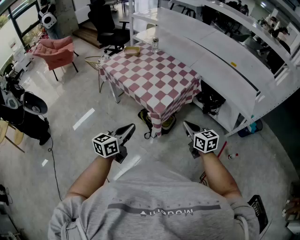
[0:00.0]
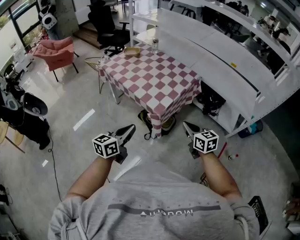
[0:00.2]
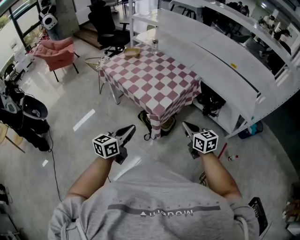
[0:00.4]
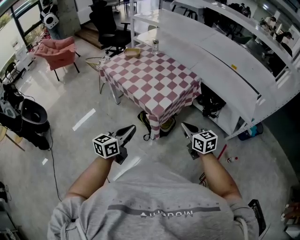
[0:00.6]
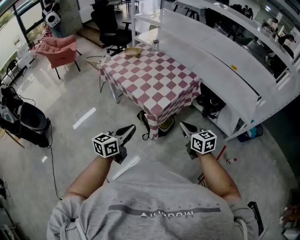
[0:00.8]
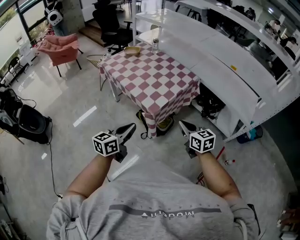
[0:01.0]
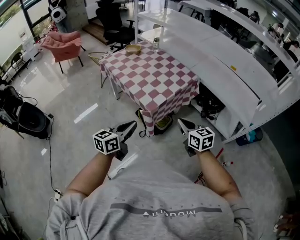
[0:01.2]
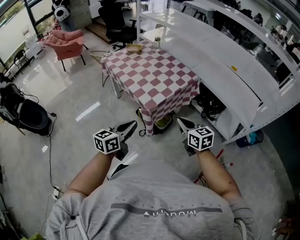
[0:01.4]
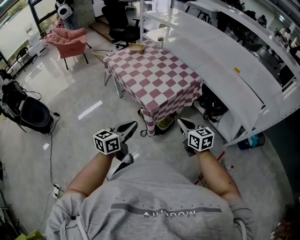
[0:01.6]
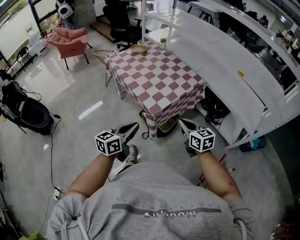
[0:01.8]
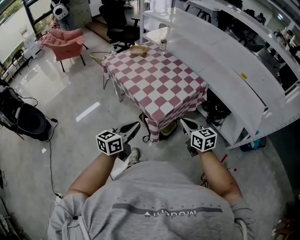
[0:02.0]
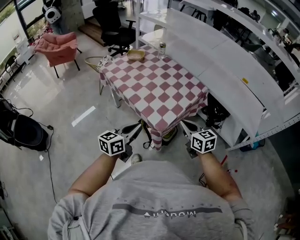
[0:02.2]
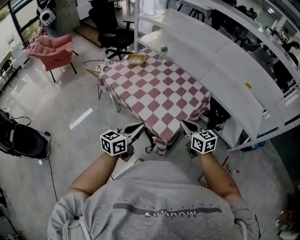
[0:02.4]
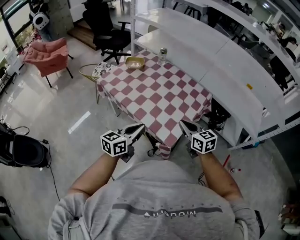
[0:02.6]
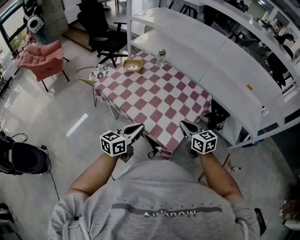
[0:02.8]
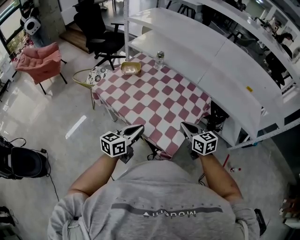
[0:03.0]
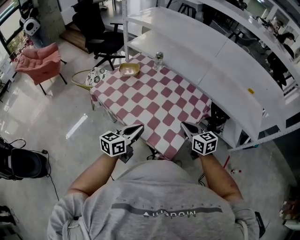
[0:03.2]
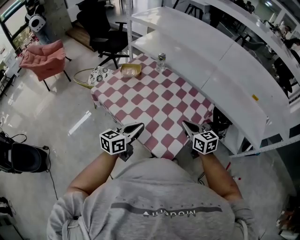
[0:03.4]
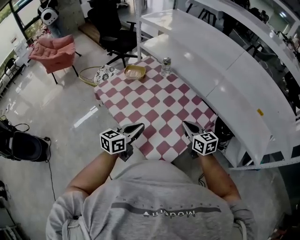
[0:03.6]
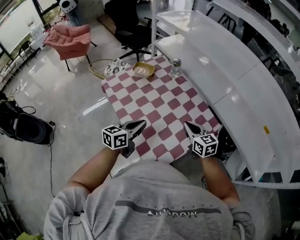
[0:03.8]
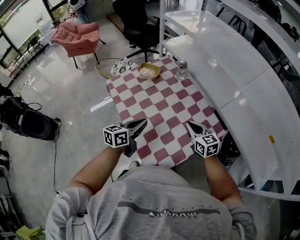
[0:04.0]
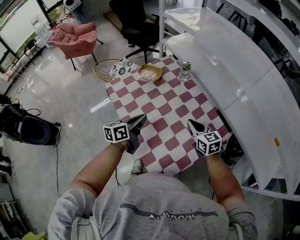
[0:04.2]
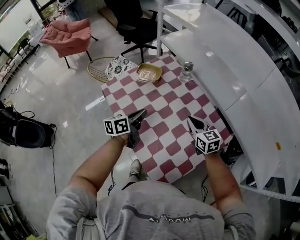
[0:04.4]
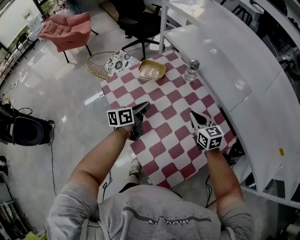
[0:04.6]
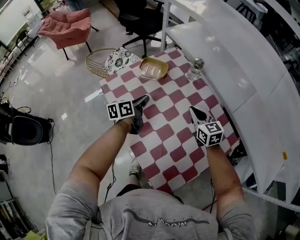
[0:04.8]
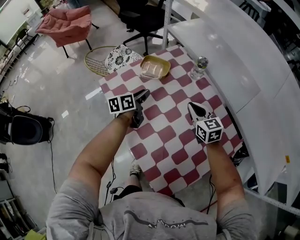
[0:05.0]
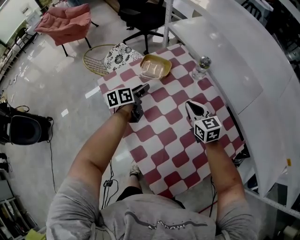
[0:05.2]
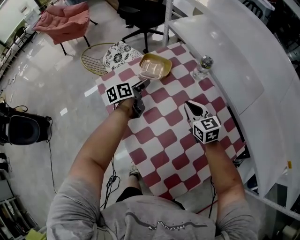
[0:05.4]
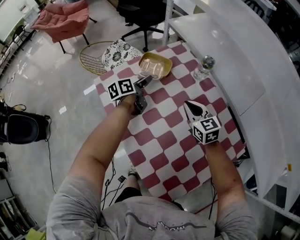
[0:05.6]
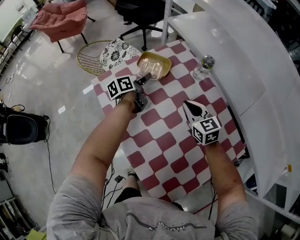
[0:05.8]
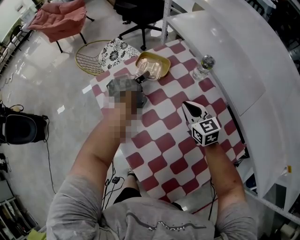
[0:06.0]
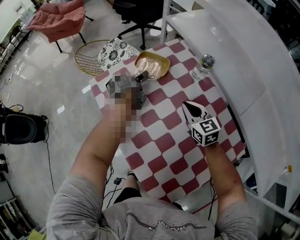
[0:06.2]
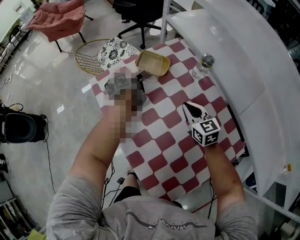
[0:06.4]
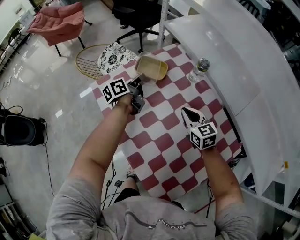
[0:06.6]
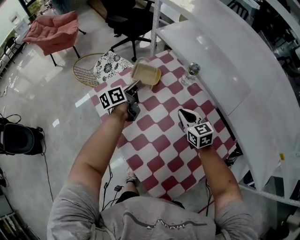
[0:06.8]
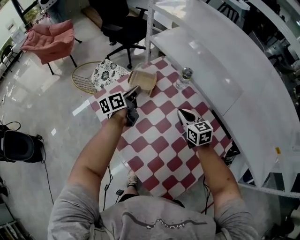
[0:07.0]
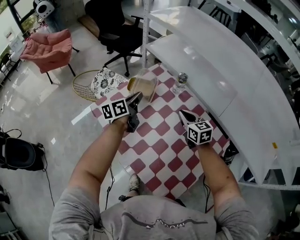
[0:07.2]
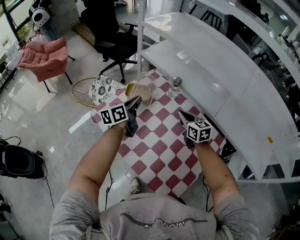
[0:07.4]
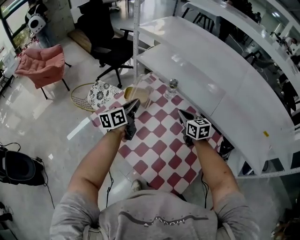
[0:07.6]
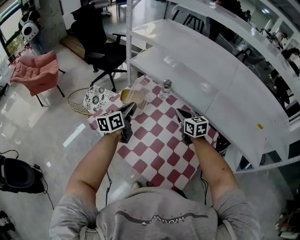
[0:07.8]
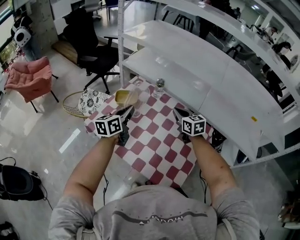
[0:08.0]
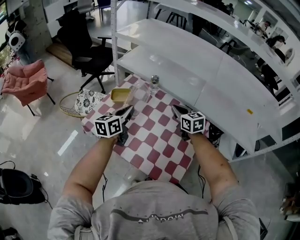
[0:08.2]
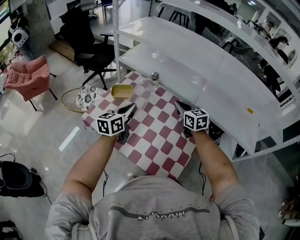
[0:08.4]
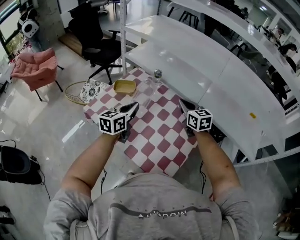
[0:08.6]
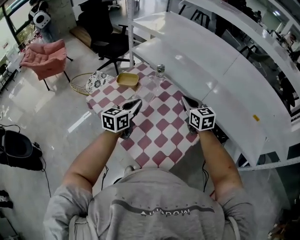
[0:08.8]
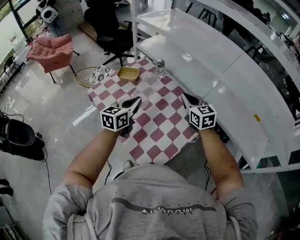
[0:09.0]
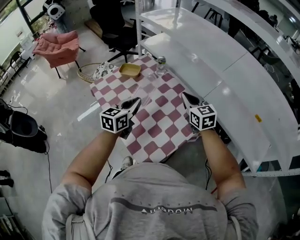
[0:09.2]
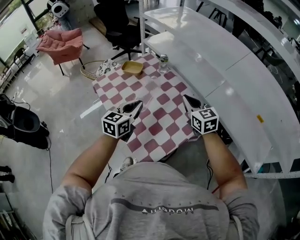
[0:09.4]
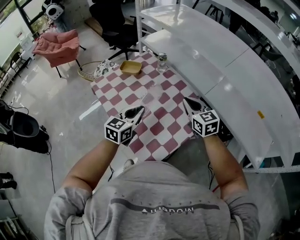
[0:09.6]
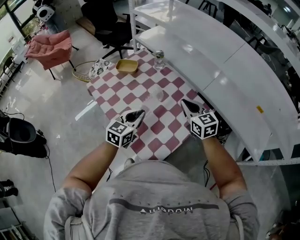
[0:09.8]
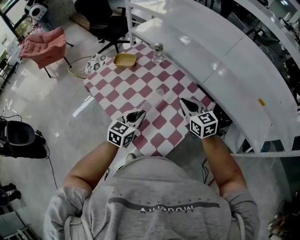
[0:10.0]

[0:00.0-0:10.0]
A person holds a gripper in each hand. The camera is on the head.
0:00.0 to 0:01.4: The right gripper goes some 5 cm to the right, while the left gripper heads to the right, covering roughly 10 cm.
0:01.4 to 0:02.8: Both grippers travel together forward and to the left, about 35 cm.
0:02.8 to 0:04.2: Both grippers travel together forward, roughly 25 cm. The left gripper changes its angle by roughly 30 degrees.
0:04.2 to 0:05.8: The left gripper goes approximately 35 cm forward and downward, rotates roughly 20 degrees, and opens; the right gripper shifts about 20 cm forward, to the left and downward.
0:05.8 to 0:07.2: The left gripper moves upward and backward, about 15 cm, changes its angle by approximately 20 degrees, and closes up; the right gripper moves upward, approximately 10 cm.
0:07.2 to 0:08.6: The left gripper travels backward, to the right and upward by approximately 20 cm, and turns by about 30 degrees. Meanwhile the right gripper heads upward, to the right and backward, covering approximately 15 cm.
0:08.6 to 0:10.0: The right gripper goes some 10 cm backward, while the left gripper moves backward, to the right and downward, some 20 cm.

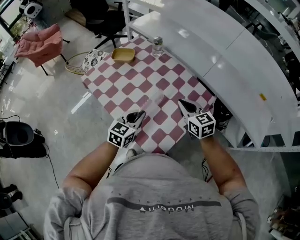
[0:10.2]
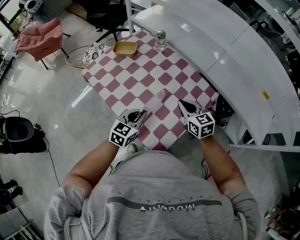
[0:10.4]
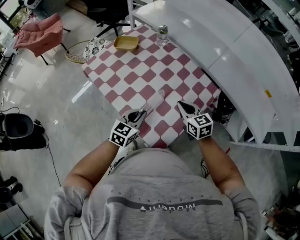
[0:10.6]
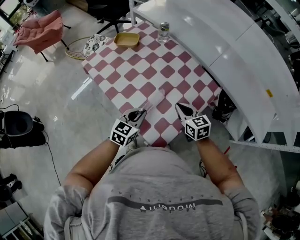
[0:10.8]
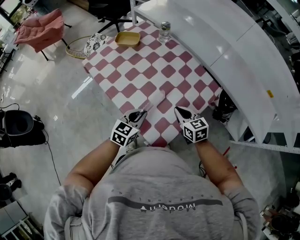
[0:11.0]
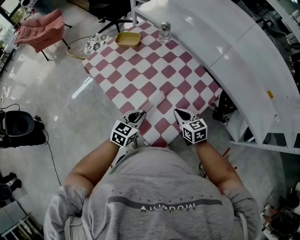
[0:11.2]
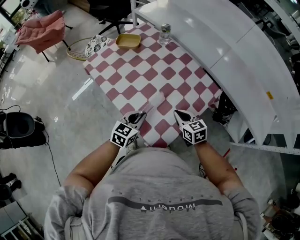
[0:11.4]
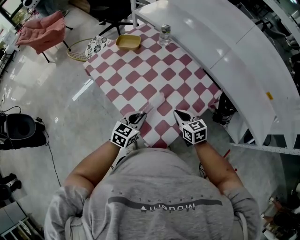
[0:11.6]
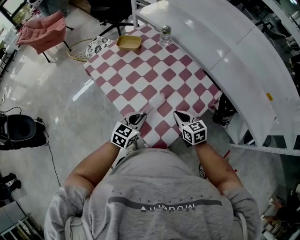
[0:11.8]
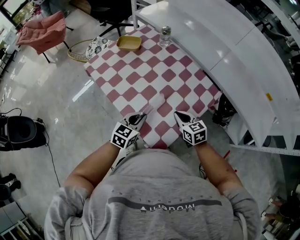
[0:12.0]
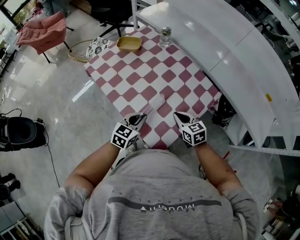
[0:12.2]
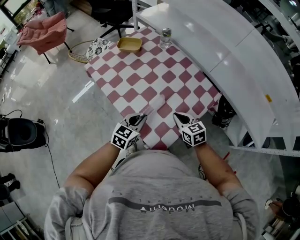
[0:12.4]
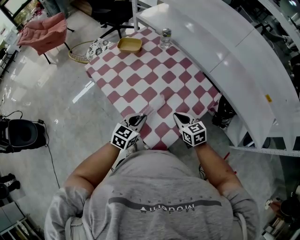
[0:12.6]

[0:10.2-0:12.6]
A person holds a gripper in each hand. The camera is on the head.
0:10.2 to 0:11.4: The right gripper shifts approximately 15 cm downward and backward, while the left gripper travels downward by about 5 cm.
0:11.4 to 0:12.6: Both grippers stay about where they are.

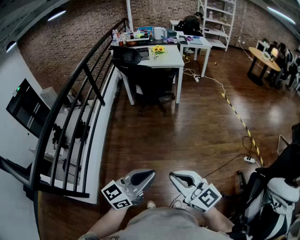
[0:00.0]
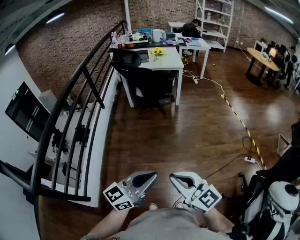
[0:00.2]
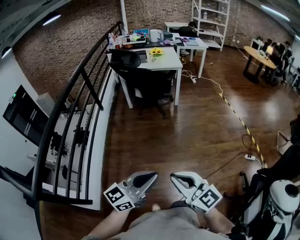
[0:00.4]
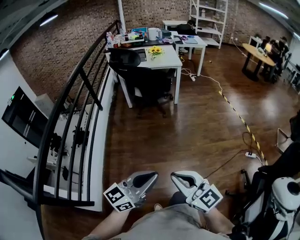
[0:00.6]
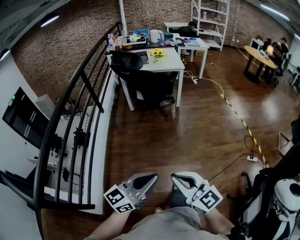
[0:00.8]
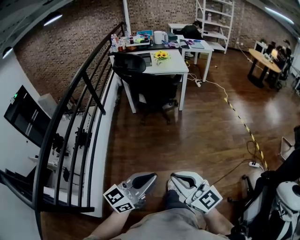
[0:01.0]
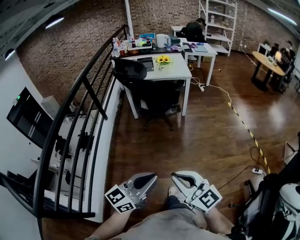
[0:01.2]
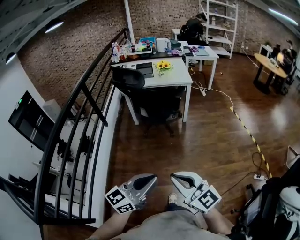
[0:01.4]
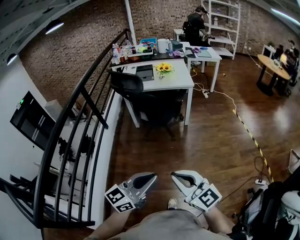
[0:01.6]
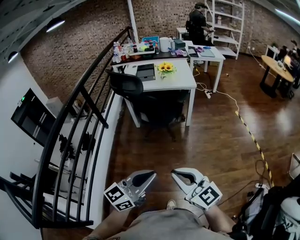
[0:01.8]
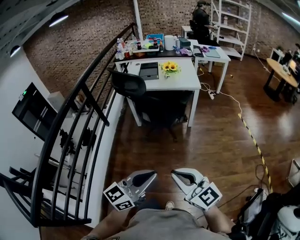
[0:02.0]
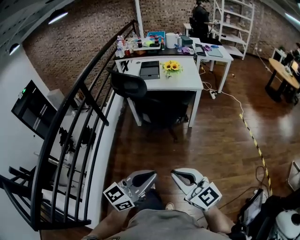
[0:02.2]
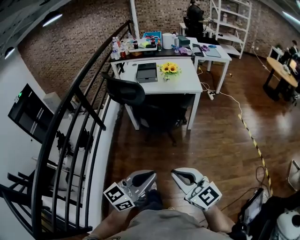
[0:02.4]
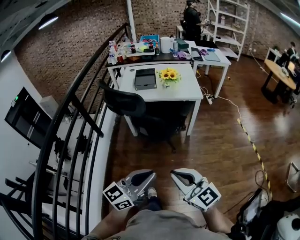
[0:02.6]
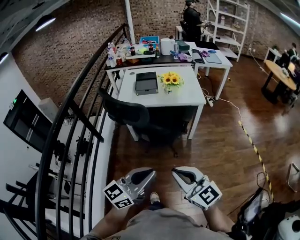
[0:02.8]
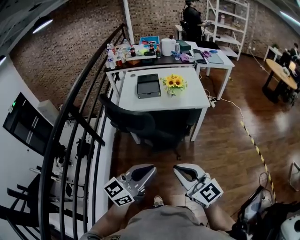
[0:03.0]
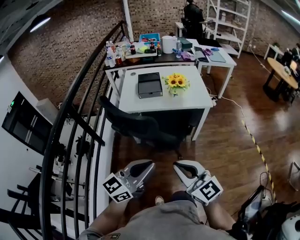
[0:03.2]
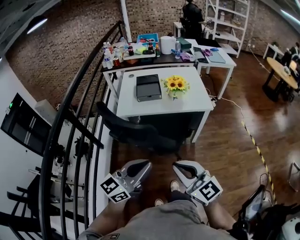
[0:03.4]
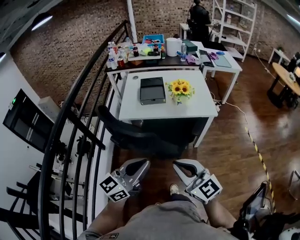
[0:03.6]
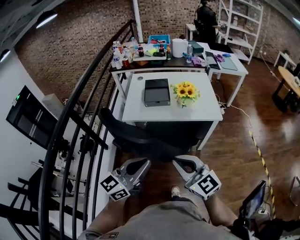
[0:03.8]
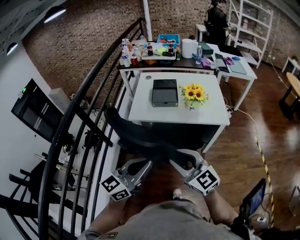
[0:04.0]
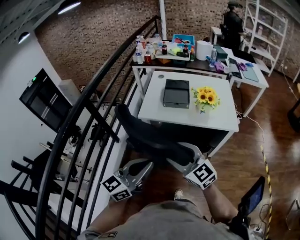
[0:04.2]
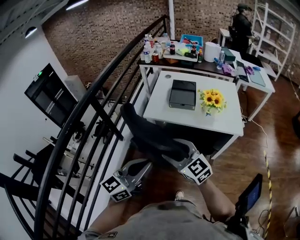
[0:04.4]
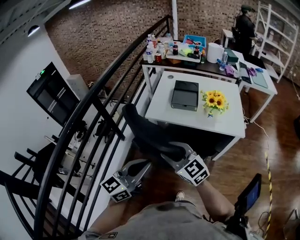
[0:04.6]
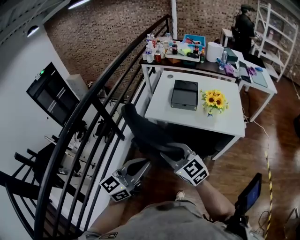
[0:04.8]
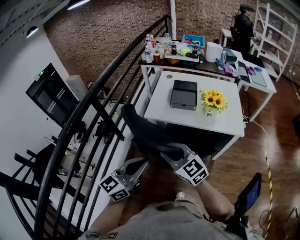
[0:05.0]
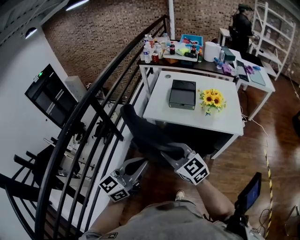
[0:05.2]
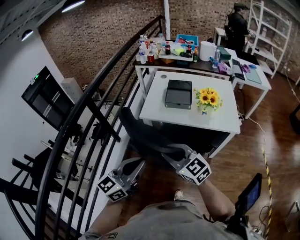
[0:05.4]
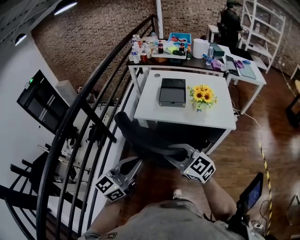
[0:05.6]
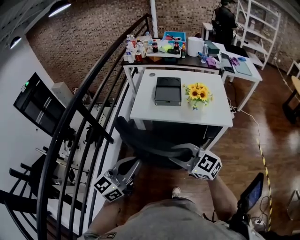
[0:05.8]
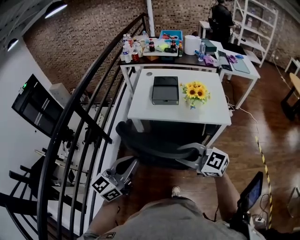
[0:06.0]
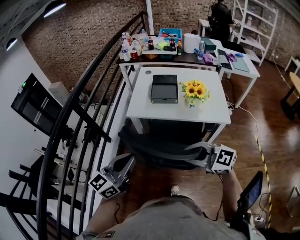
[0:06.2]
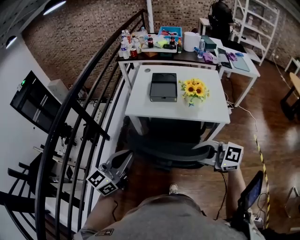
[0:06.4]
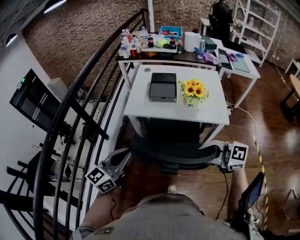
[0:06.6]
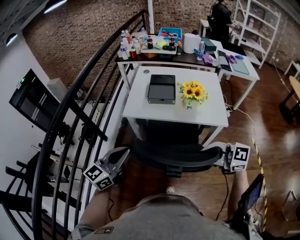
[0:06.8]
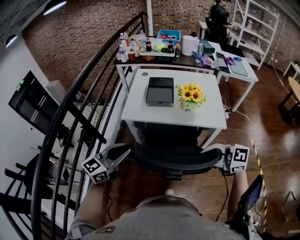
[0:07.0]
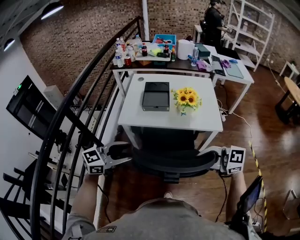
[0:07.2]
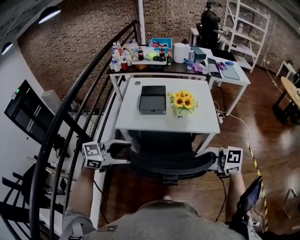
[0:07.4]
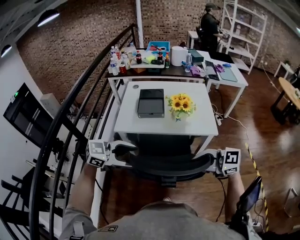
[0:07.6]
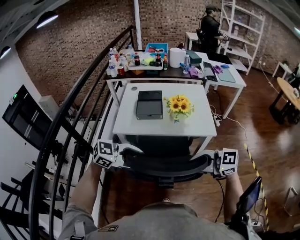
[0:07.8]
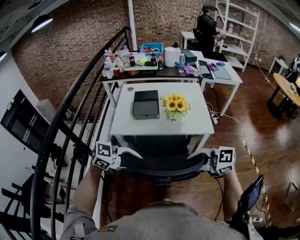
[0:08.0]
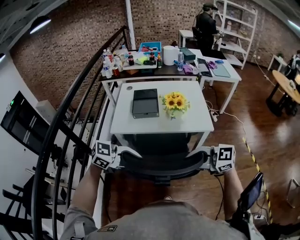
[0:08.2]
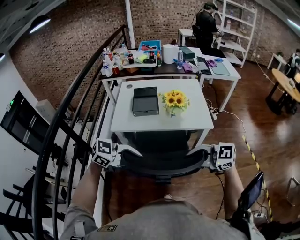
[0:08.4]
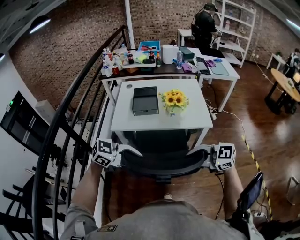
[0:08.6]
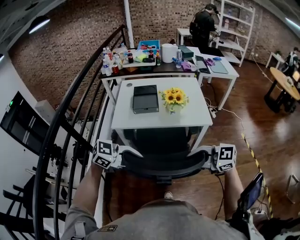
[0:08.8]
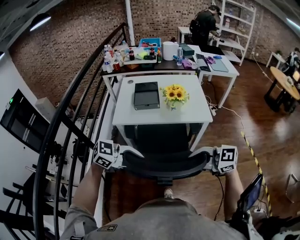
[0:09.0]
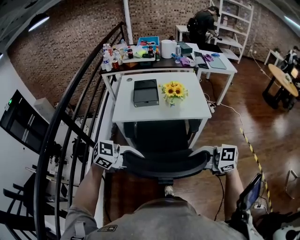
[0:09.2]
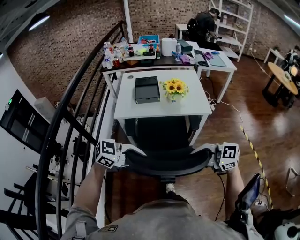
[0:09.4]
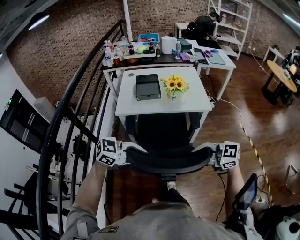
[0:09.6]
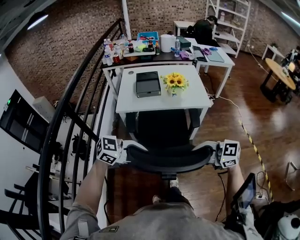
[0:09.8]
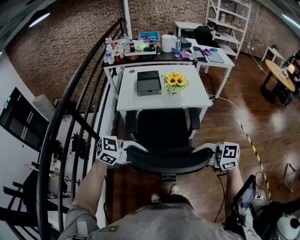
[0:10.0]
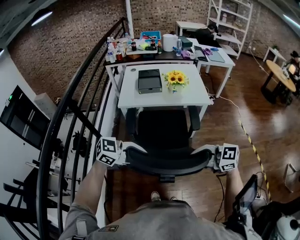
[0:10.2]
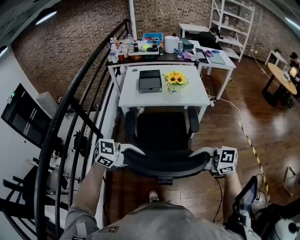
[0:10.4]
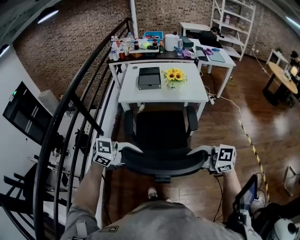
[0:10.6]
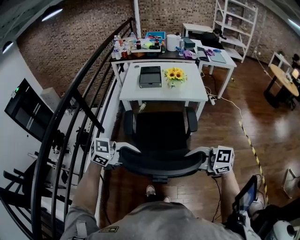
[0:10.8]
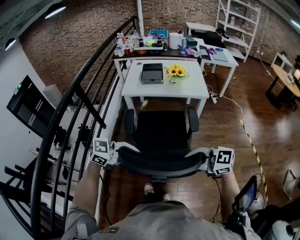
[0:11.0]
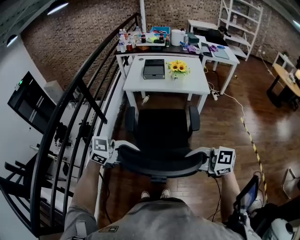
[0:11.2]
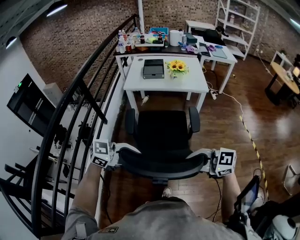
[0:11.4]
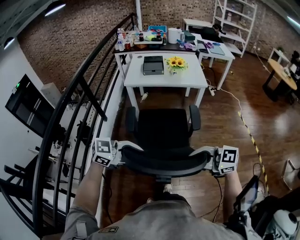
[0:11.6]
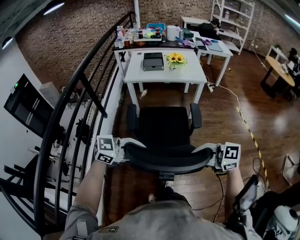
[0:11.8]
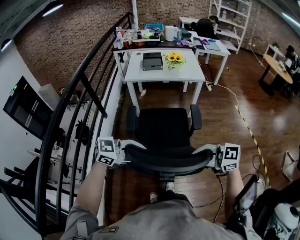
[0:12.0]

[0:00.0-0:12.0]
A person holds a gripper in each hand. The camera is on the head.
0:00.0 to 0:01.6: Both grippers travel together forward, approximately 30 cm.
0:01.6 to 0:03.0: Both grippers move forward, some 35 cm.
0:03.0 to 0:04.4: Both grippers move forward and to the left, approximately 25 cm. The left gripper rotates approximately 20 degrees. The right gripper turns by some 20 degrees, and opens up.
0:04.4 to 0:06.0: The right gripper is displaced to the right and backward by some 10 cm, and closes up.
0:06.0 to 0:07.6: The right gripper ends up approximately 15 cm from where it was. Meanwhile the left gripper ends up some 10 cm from where it was, turns by about 50 degrees, and opens.
0:07.6 to 0:09.0: The left gripper moves approximately 10 cm, and closes its fingers. The right gripper ends up about 5 cm from where it was.
0:09.0 to 0:10.4: The left gripper shifts by about 15 cm; the right gripper ends up some 15 cm from where it was.
0:10.4 to 0:12.0: The left gripper moves about 25 cm; the right gripper shifts by roughly 25 cm.
